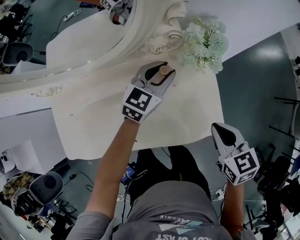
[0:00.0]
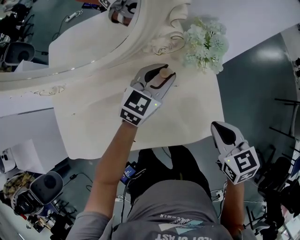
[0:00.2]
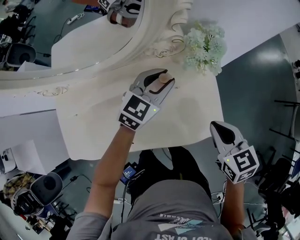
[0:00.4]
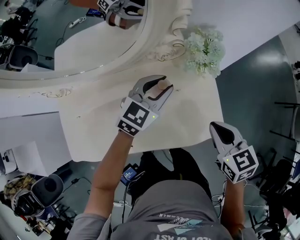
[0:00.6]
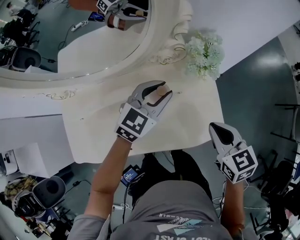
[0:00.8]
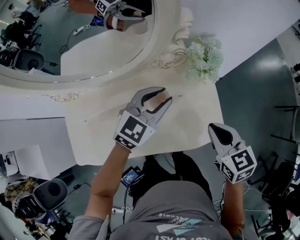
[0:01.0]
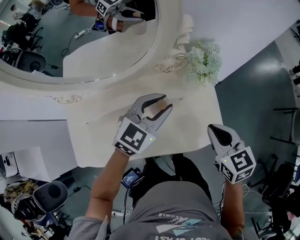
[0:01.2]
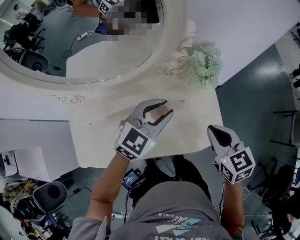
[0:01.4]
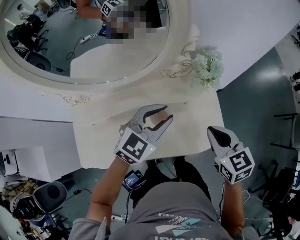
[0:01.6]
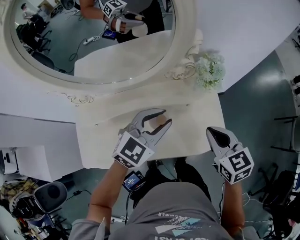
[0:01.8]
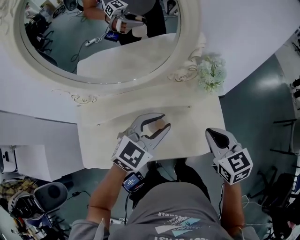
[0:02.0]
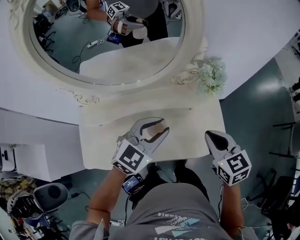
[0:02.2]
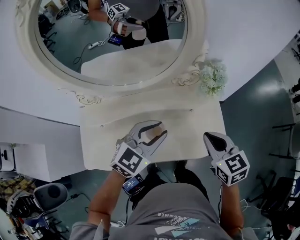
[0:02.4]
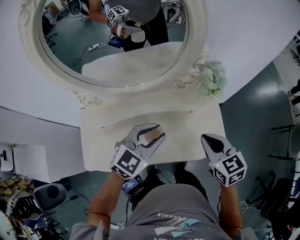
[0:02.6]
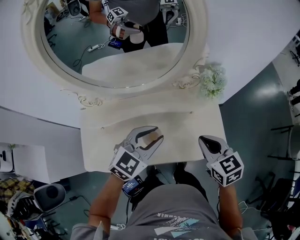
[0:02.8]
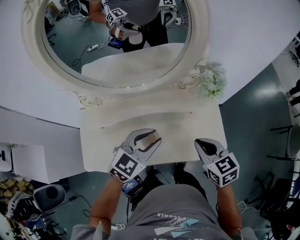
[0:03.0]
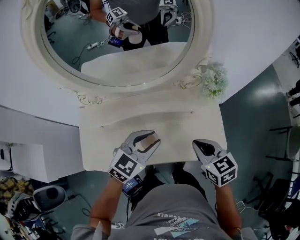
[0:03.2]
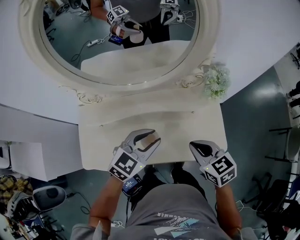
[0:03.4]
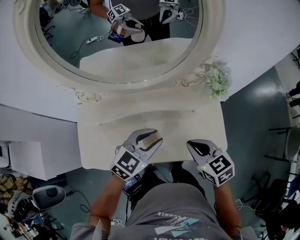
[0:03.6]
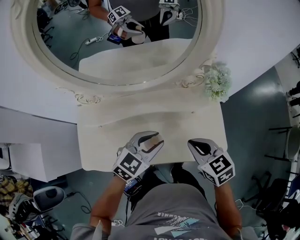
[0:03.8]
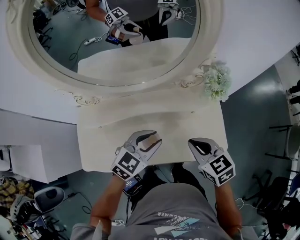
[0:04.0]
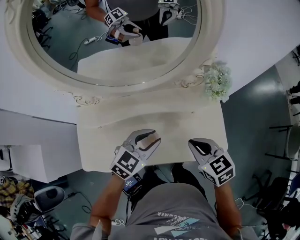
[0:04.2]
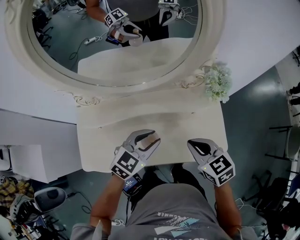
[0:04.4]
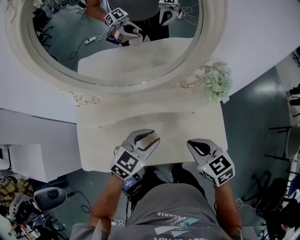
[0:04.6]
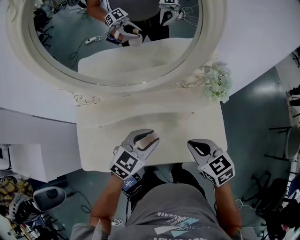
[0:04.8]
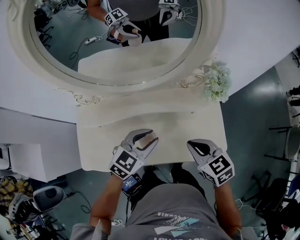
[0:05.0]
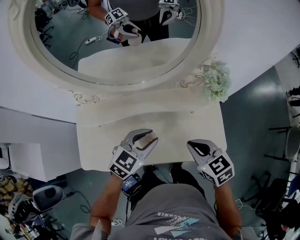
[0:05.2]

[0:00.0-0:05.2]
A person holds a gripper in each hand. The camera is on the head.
0.0 to 1.8 s: The right gripper travels upward and to the left by roughly 15 cm. The left gripper heads backward, upward and to the left, covering roughly 20 cm.
1.8 to 3.4 s: The left gripper is displaced to the left and backward by some 10 cm. Meanwhile the right gripper is displaced to the left by roughly 10 cm.
3.4 to 5.2 s: The grippers stay close to where they were, moving slightly.

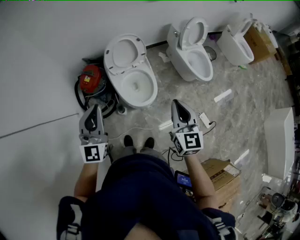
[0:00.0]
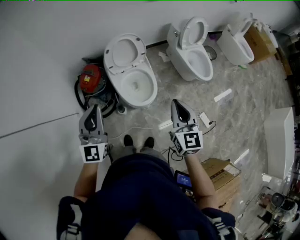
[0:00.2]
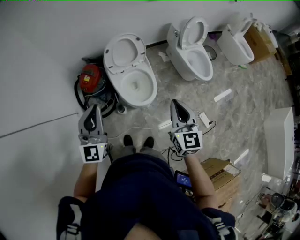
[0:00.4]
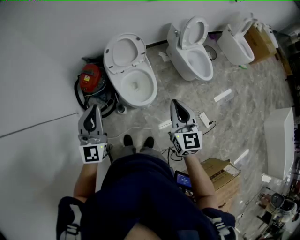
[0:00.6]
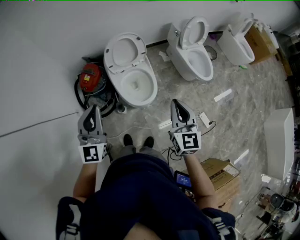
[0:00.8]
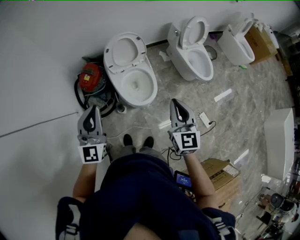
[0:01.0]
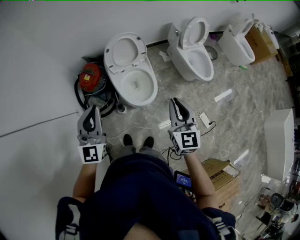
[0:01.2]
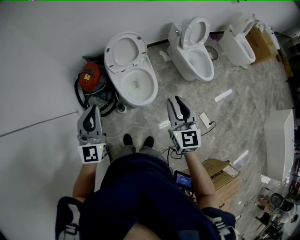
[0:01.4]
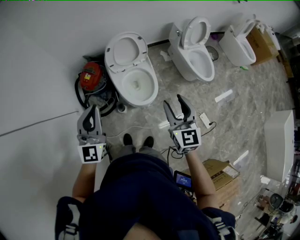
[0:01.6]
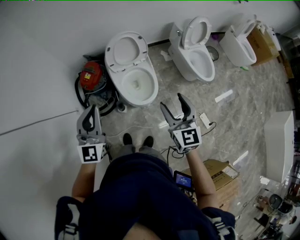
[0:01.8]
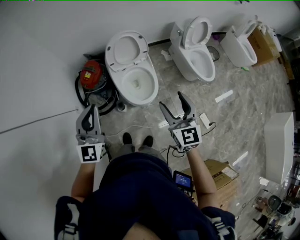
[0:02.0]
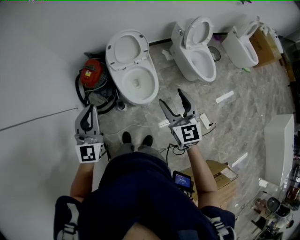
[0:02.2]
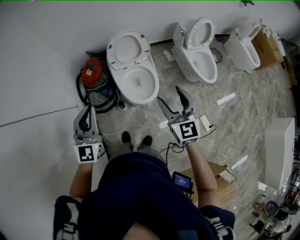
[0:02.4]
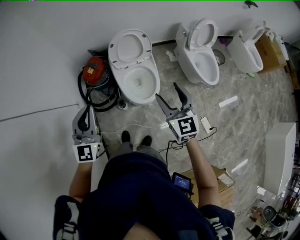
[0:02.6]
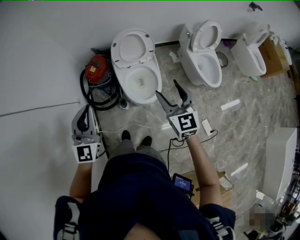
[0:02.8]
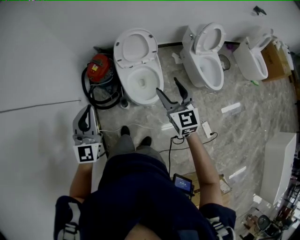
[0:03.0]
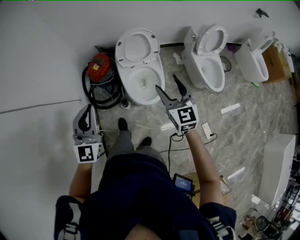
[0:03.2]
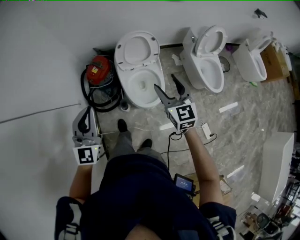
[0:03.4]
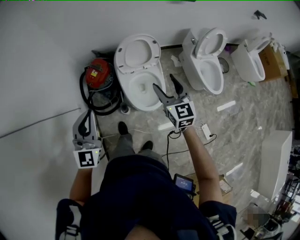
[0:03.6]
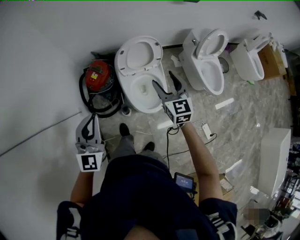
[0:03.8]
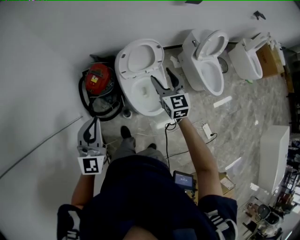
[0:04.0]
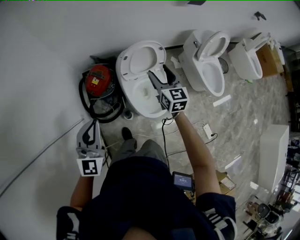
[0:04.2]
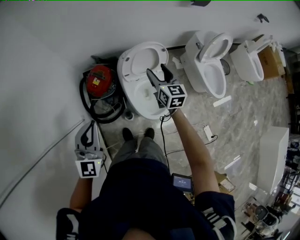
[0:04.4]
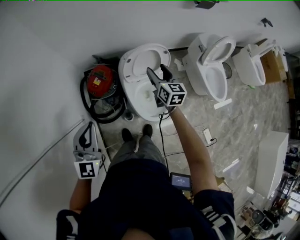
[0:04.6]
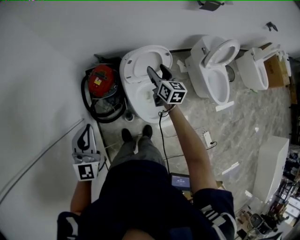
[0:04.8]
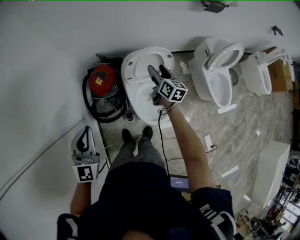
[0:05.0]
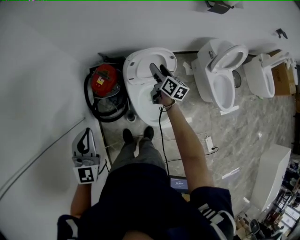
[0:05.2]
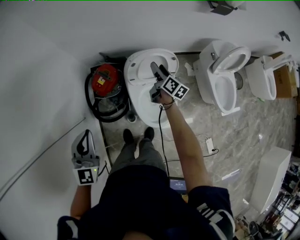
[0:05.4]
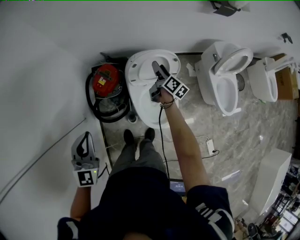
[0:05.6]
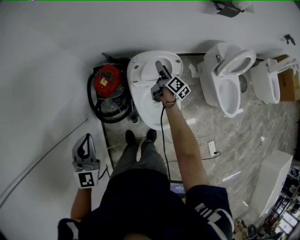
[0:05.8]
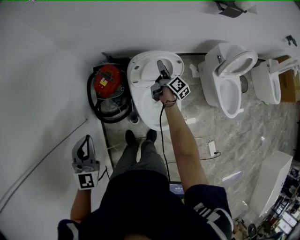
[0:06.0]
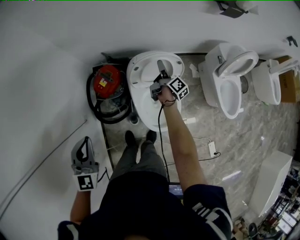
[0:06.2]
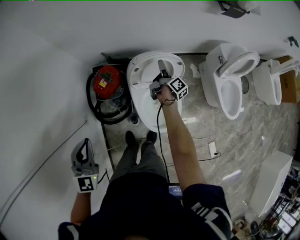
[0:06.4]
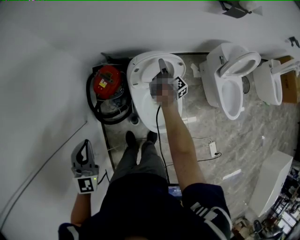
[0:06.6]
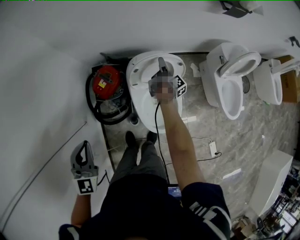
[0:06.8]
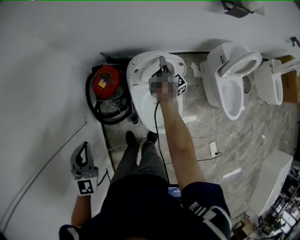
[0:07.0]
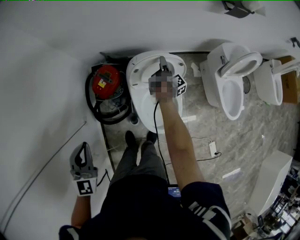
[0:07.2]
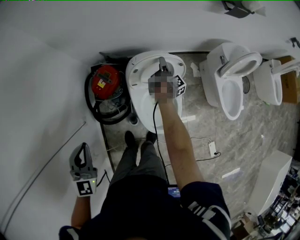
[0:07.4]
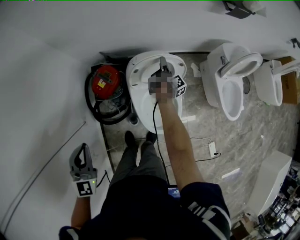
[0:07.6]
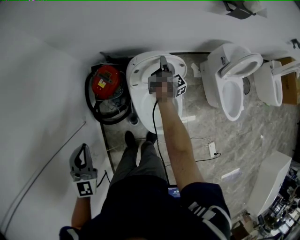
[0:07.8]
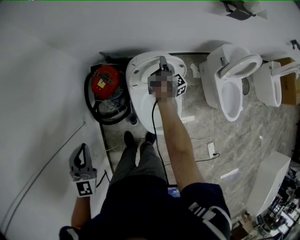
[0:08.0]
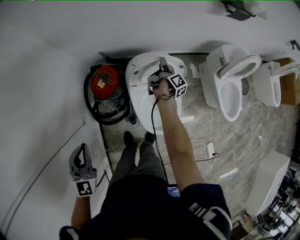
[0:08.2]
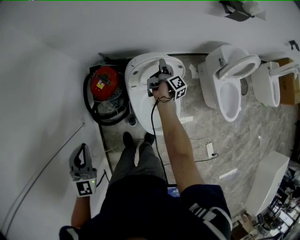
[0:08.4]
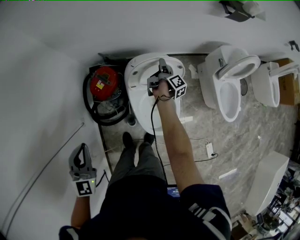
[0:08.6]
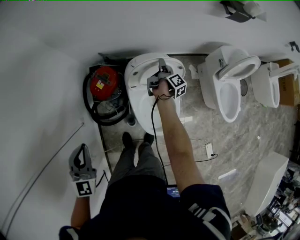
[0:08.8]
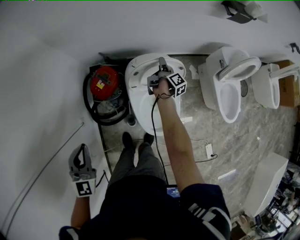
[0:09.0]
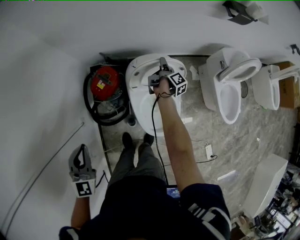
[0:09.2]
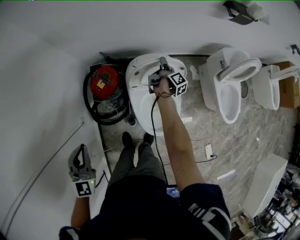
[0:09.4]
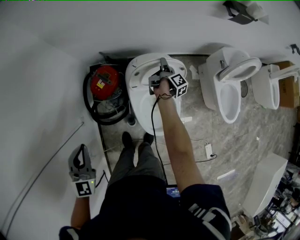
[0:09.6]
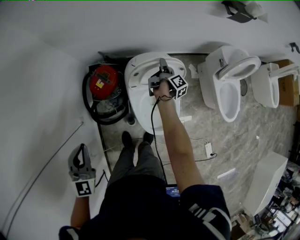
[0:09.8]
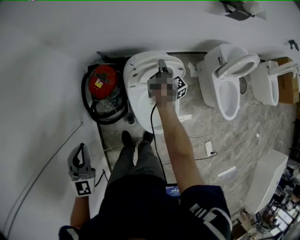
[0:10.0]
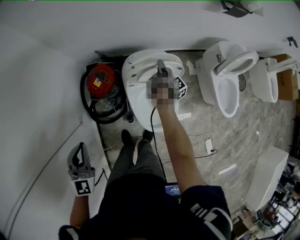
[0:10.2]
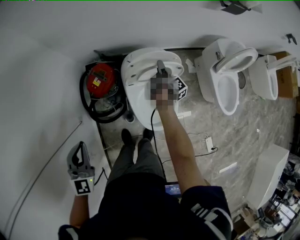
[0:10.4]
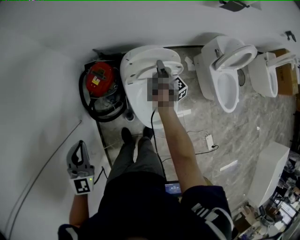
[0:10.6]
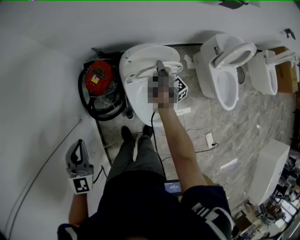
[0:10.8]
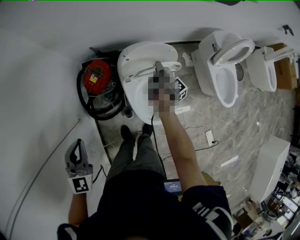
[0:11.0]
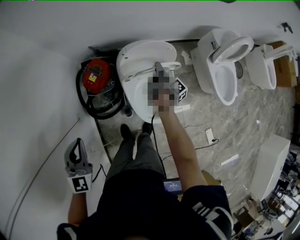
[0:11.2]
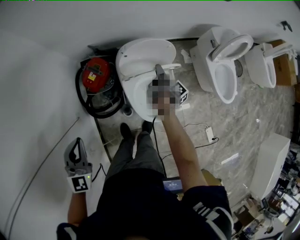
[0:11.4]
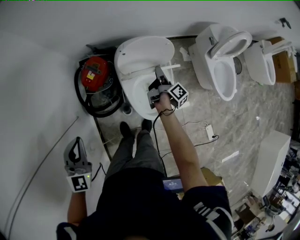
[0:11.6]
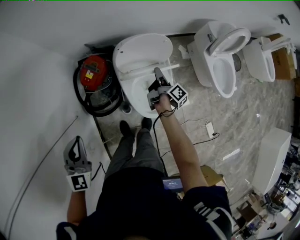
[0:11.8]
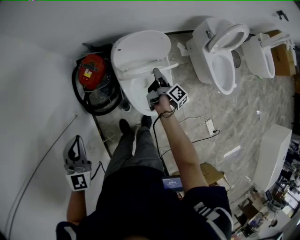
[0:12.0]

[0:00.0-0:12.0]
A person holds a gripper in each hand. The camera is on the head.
0.0 to 1.6 s: The right gripper opens up.
1.6 to 3.0 s: The right gripper travels forward by approximately 5 cm.
3.0 to 4.4 s: Both grippers move forward and to the left, approximately 30 cm.
4.4 to 6.0 s: The left gripper heads forward and downward, covering some 10 cm. The right gripper goes roughly 25 cm forward and downward, and twists approximately 60 degrees clockwise, seen from behind.
6.0 to 7.6 s: The right gripper travels downward and forward by approximately 10 cm, and rotates approximately 20 degrees.
7.6 to 9.0 s: The grippers move only a little.
9.0 to 10.4 s: The right gripper is displaced backward by roughly 5 cm.
10.4 to 12.0 s: The right gripper travels backward by approximately 15 cm.

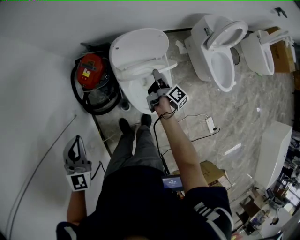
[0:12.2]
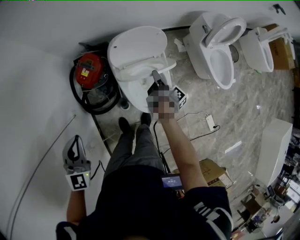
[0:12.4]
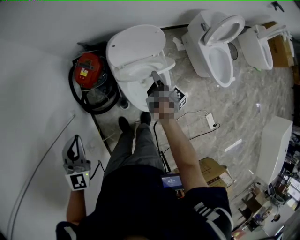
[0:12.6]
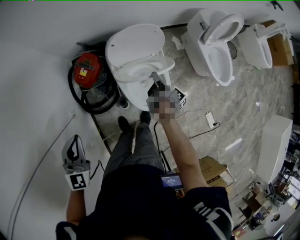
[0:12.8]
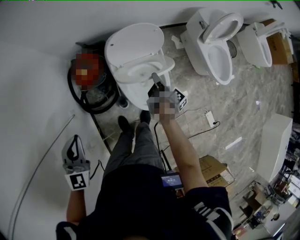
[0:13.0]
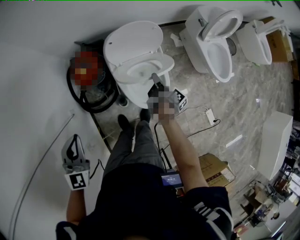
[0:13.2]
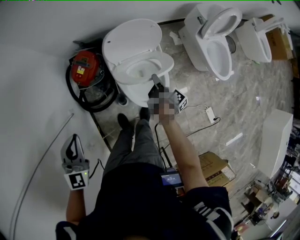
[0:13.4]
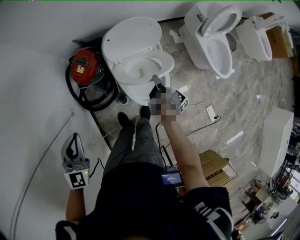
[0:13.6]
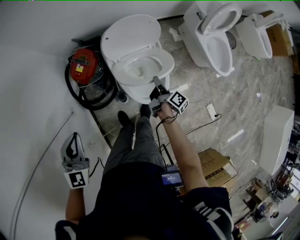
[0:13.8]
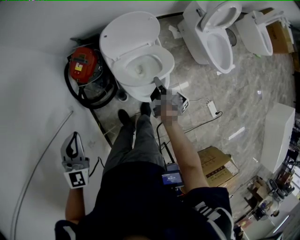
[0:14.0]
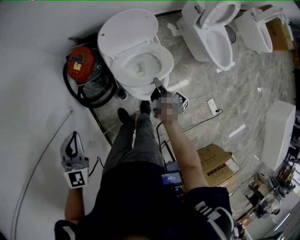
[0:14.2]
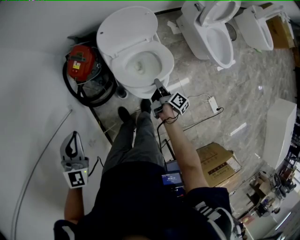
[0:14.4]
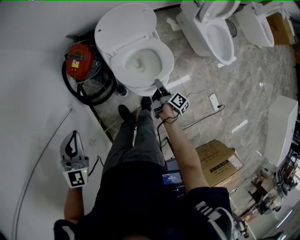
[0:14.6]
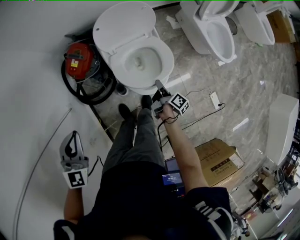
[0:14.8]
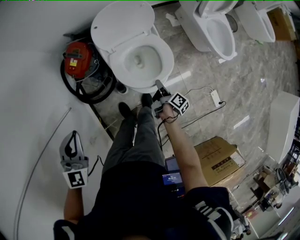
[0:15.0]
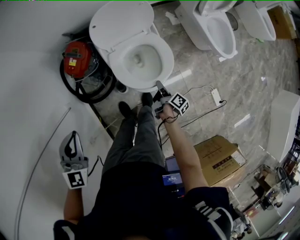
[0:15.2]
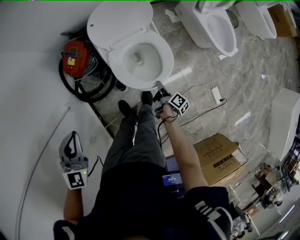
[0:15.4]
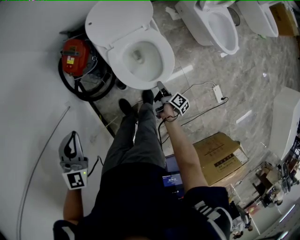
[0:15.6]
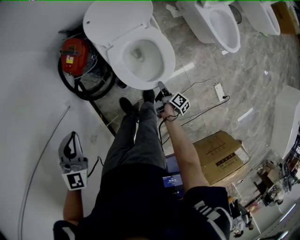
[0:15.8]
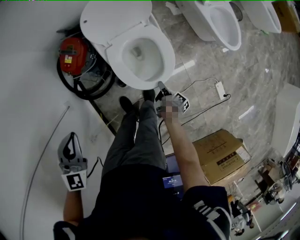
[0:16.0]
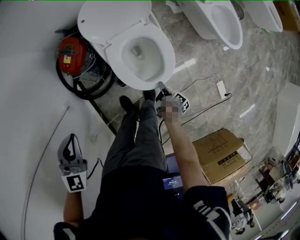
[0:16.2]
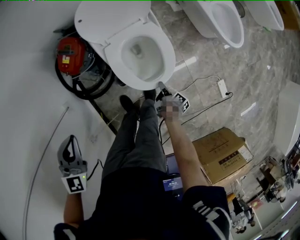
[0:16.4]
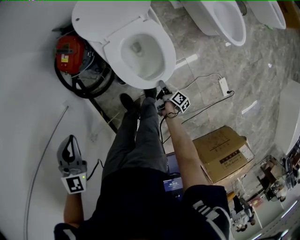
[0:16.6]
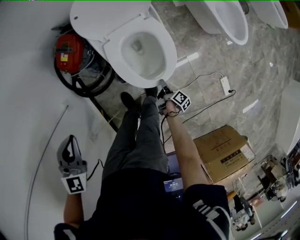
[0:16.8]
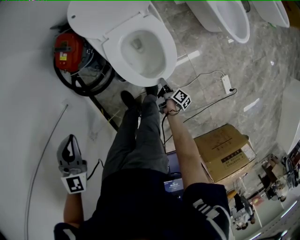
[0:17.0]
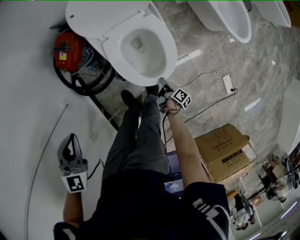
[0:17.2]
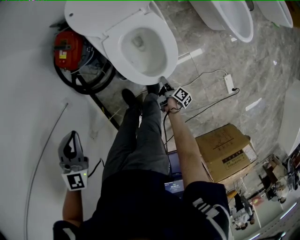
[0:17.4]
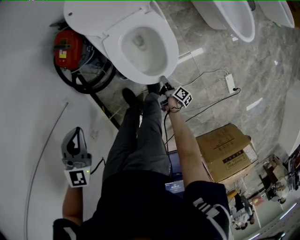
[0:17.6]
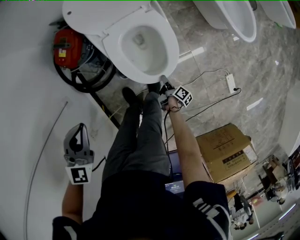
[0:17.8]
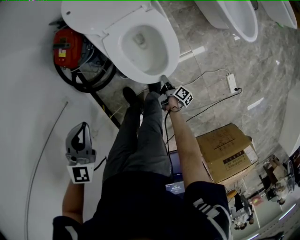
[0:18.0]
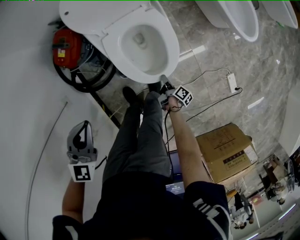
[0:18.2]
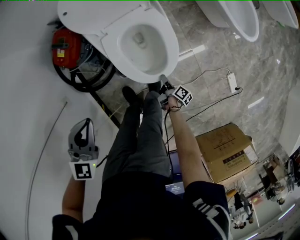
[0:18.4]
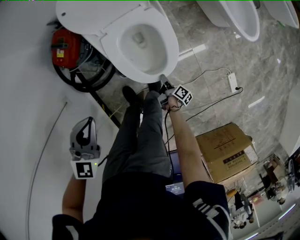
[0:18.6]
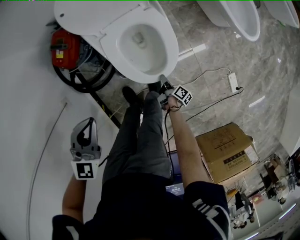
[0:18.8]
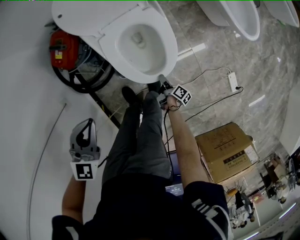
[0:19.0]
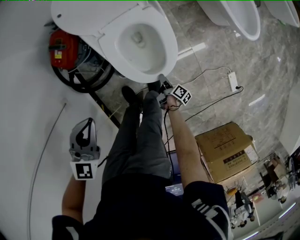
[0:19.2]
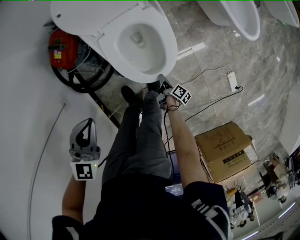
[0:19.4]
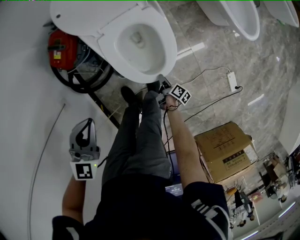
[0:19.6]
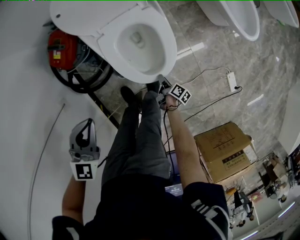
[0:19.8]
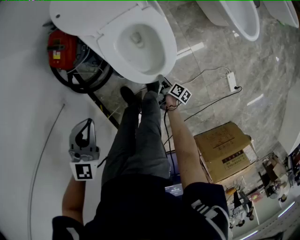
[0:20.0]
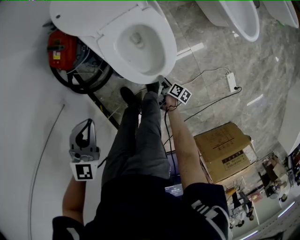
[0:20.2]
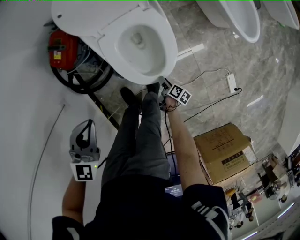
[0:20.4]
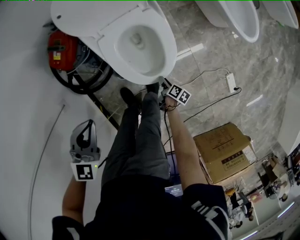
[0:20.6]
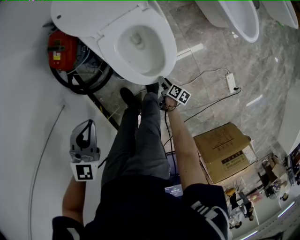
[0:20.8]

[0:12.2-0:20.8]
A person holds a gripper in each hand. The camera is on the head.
12.2 to 13.6 s: The right gripper travels backward by approximately 10 cm.
13.6 to 15.0 s: The right gripper moves backward and downward, about 15 cm, while the left gripper changes place by about 5 cm.
15.0 to 16.6 s: The left gripper moves downward, roughly 5 cm; the right gripper is displaced downward by approximately 15 cm.
16.6 to 18.0 s: The right gripper travels downward by about 10 cm. Meanwhile the left gripper is displaced to the right and downward by some 10 cm.
18.0 to 19.4 s: The left gripper moves some 5 cm.
19.4 to 20.8 s: The right gripper turns by about 20 degrees.
